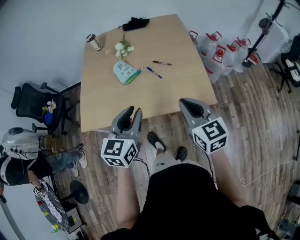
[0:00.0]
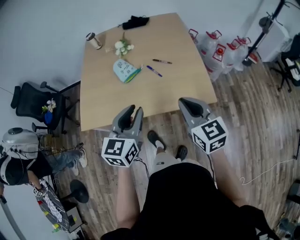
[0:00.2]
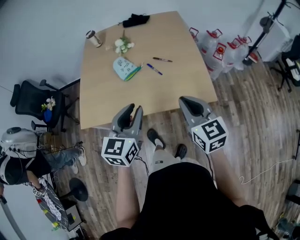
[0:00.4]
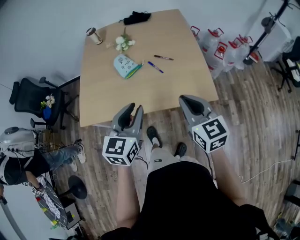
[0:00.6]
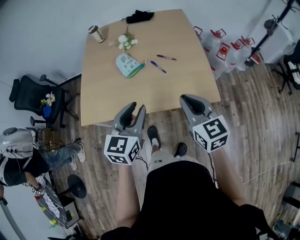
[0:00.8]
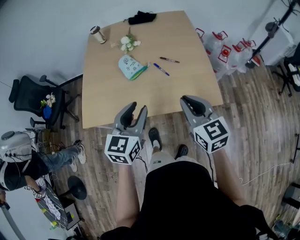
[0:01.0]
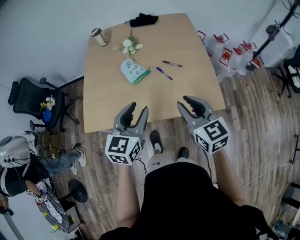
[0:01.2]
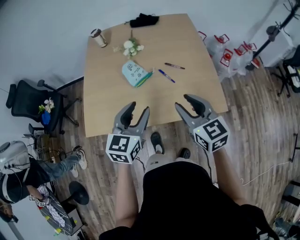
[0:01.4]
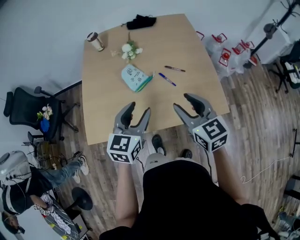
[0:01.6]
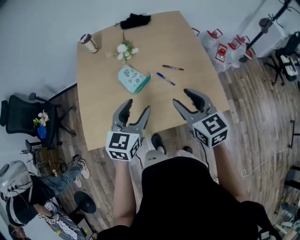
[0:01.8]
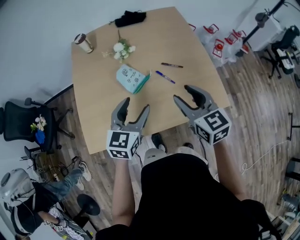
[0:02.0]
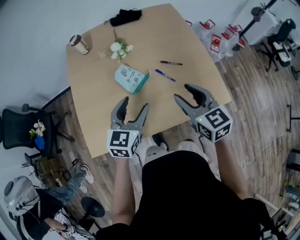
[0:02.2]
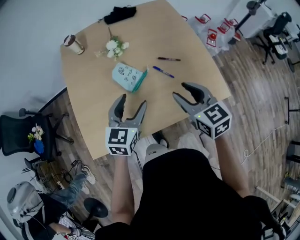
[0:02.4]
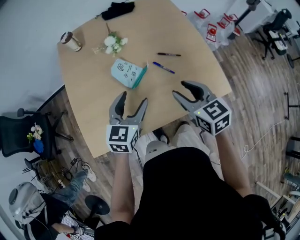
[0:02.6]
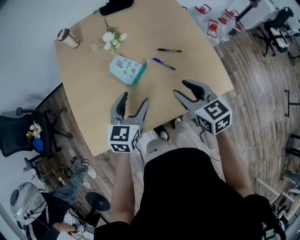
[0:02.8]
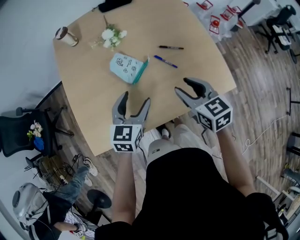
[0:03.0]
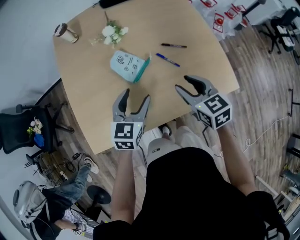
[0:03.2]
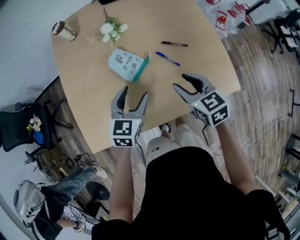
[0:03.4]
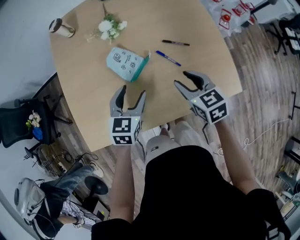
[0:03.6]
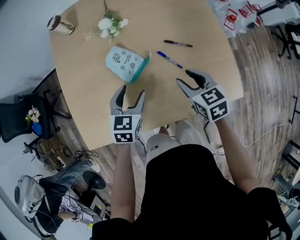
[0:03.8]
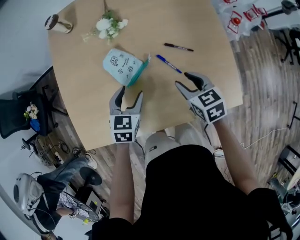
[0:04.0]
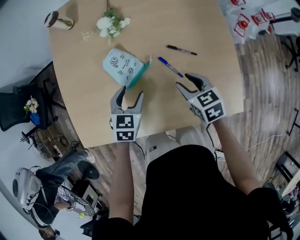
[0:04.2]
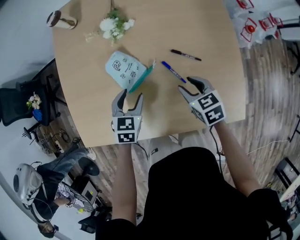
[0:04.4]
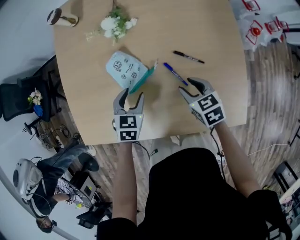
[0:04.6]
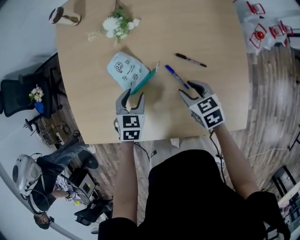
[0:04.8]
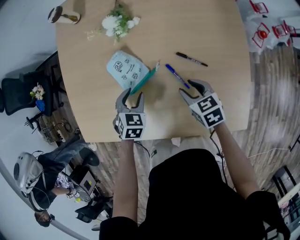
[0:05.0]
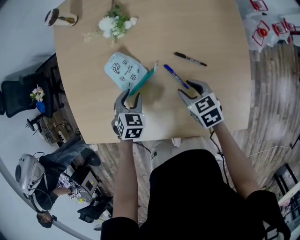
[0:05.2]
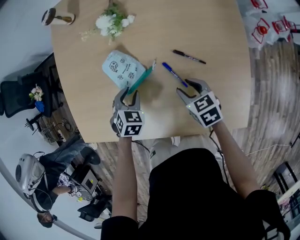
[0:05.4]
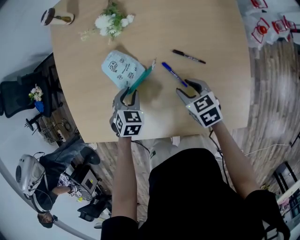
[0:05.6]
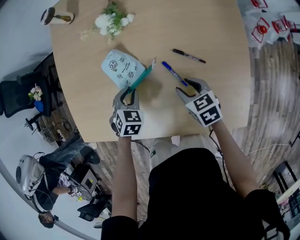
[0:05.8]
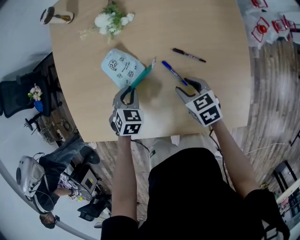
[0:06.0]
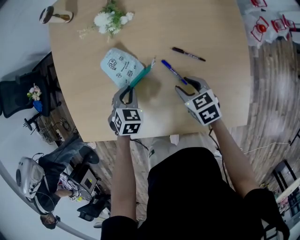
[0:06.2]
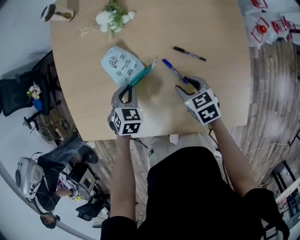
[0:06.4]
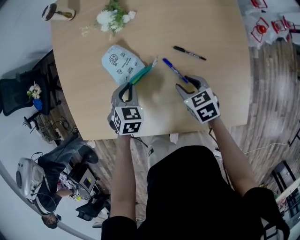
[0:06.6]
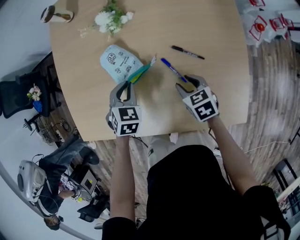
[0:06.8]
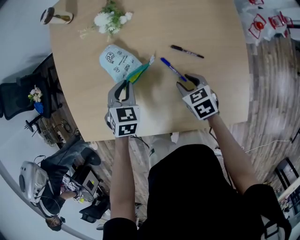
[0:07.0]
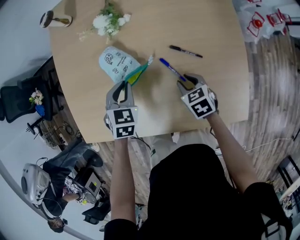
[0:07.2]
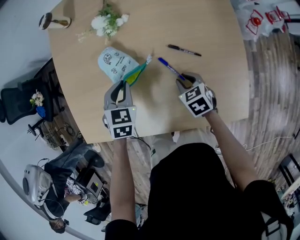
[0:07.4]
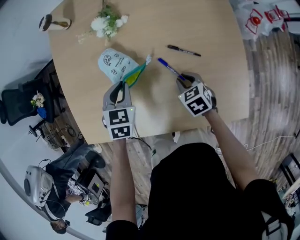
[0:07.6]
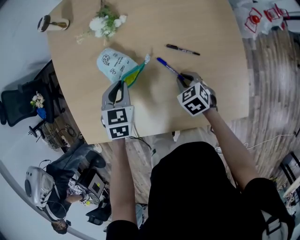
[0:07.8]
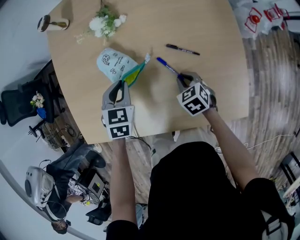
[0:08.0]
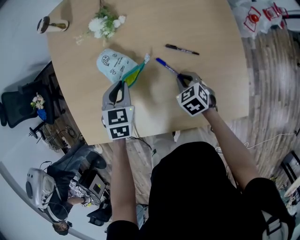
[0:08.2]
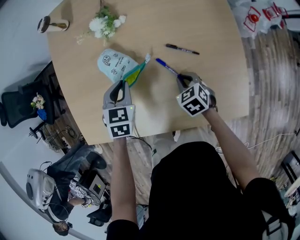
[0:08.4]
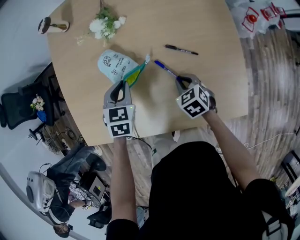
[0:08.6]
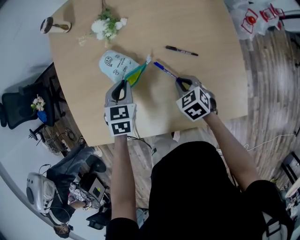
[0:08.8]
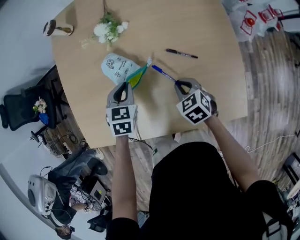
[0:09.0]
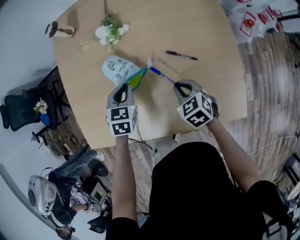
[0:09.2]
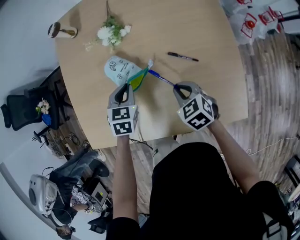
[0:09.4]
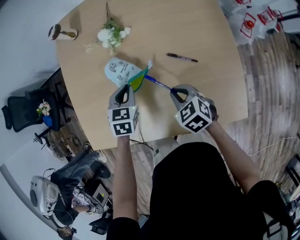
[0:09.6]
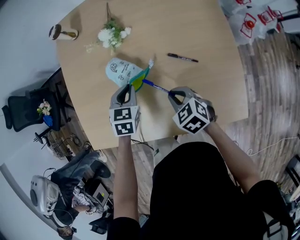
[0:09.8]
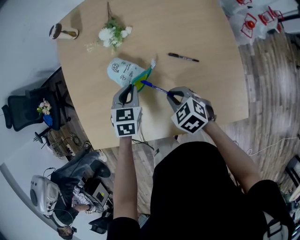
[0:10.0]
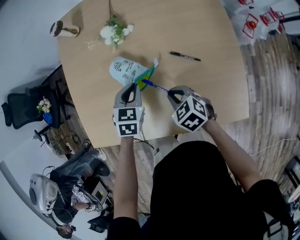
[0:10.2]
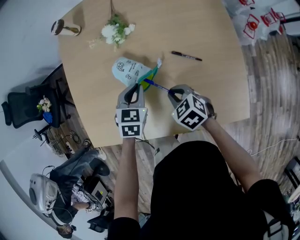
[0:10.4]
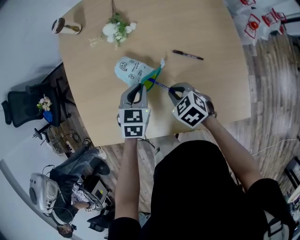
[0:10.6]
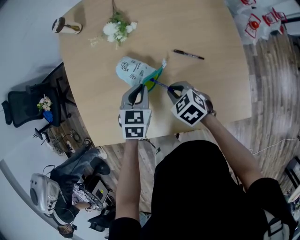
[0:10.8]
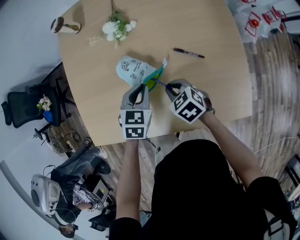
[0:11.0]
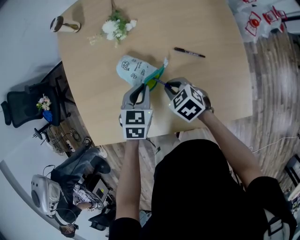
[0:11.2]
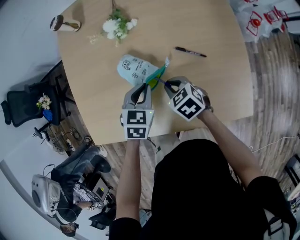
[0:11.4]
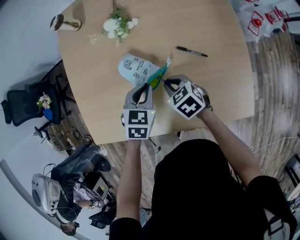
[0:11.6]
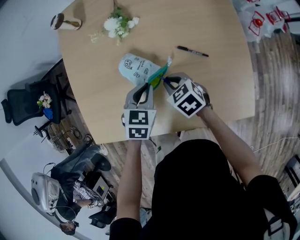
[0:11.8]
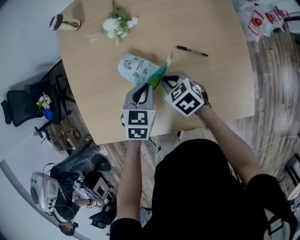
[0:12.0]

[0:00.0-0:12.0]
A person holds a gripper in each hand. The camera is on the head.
0:00.0 to 0:01.6: The two grippers go some 15 cm forward and to the left. The left gripper opens; the right gripper opens.
0:01.6 to 0:03.0: The left gripper is displaced downward, forward and to the left by roughly 15 cm. Meanwhile the right gripper shifts about 10 cm downward and forward.
0:03.0 to 0:04.4: Both grippers travel together downward and forward, about 20 cm. The right gripper turns by approximately 20 degrees, while the left gripper changes its angle by some 30 degrees.
0:04.4 to 0:06.0: The left gripper shifts roughly 5 cm downward, and closes its fingers.
0:06.0 to 0:07.6: The left gripper heads upward, covering roughly 10 cm, while the right gripper closes up.
0:07.6 to 0:09.0: The right gripper moves roughly 5 cm.
0:09.0 to 0:10.4: The right gripper heads to the left, covering some 5 cm.
0:10.4 to 0:12.0: The right gripper shifts some 5 cm forward.

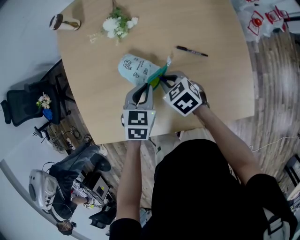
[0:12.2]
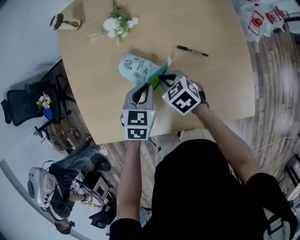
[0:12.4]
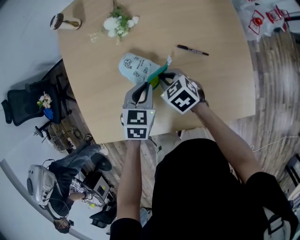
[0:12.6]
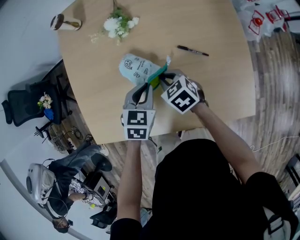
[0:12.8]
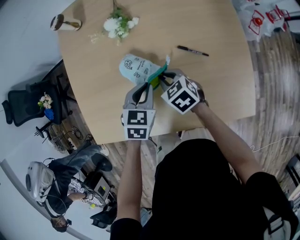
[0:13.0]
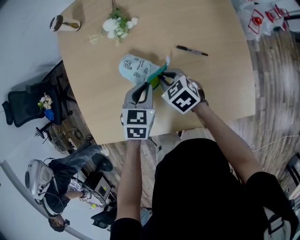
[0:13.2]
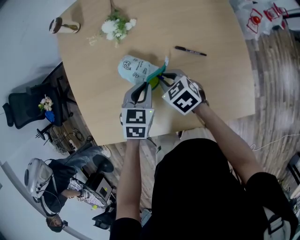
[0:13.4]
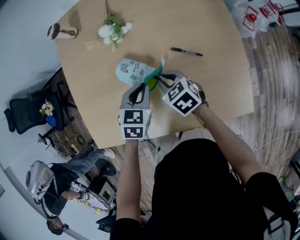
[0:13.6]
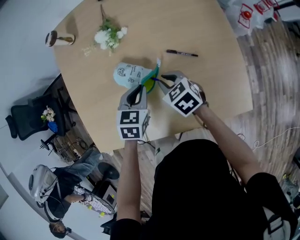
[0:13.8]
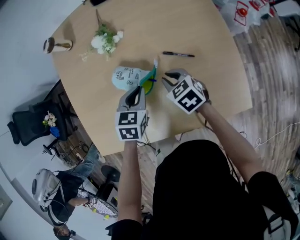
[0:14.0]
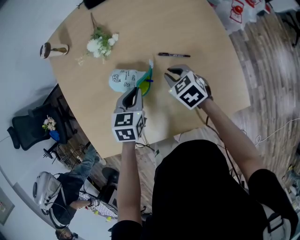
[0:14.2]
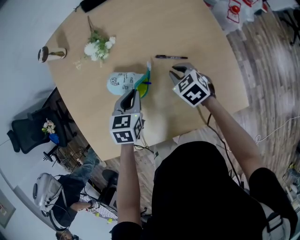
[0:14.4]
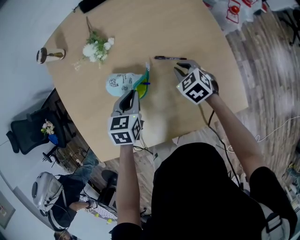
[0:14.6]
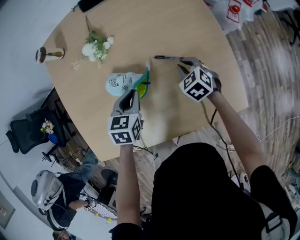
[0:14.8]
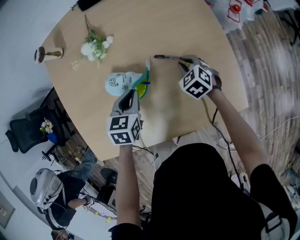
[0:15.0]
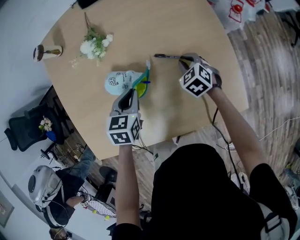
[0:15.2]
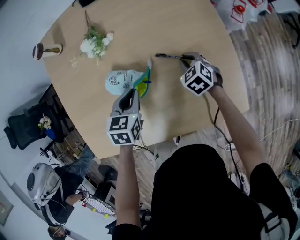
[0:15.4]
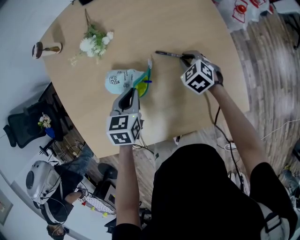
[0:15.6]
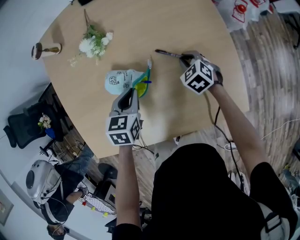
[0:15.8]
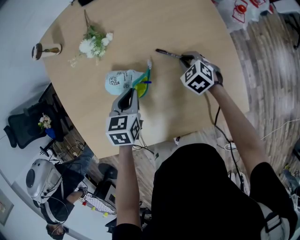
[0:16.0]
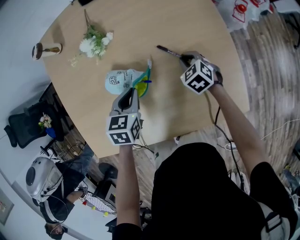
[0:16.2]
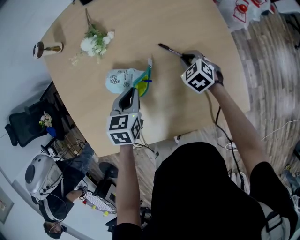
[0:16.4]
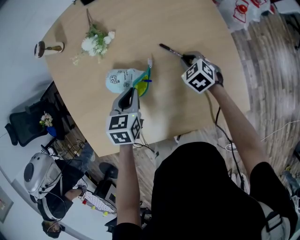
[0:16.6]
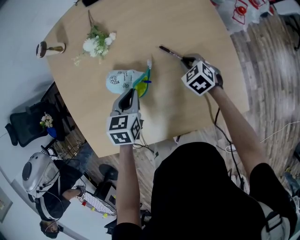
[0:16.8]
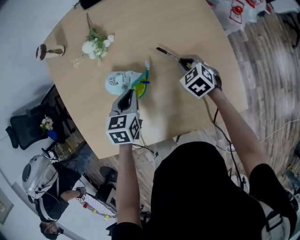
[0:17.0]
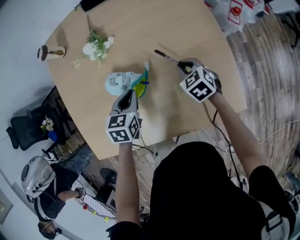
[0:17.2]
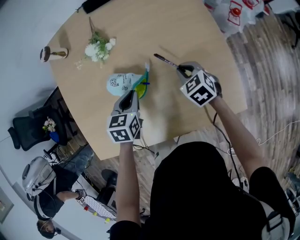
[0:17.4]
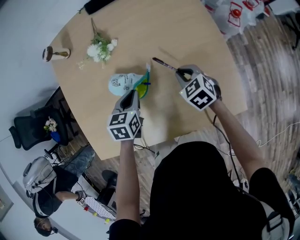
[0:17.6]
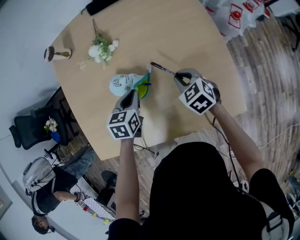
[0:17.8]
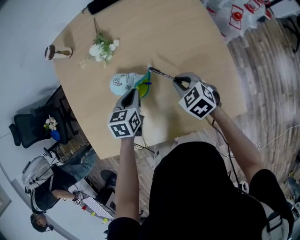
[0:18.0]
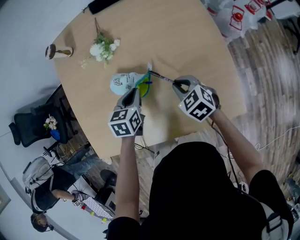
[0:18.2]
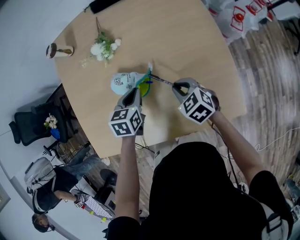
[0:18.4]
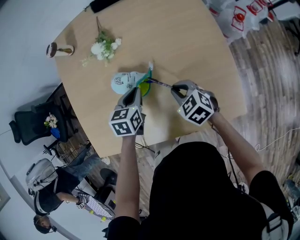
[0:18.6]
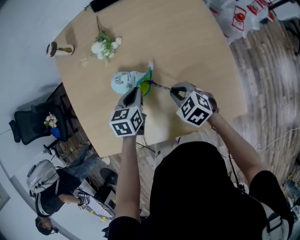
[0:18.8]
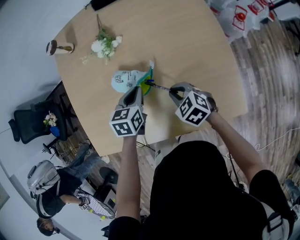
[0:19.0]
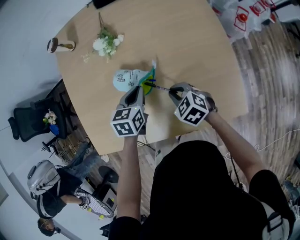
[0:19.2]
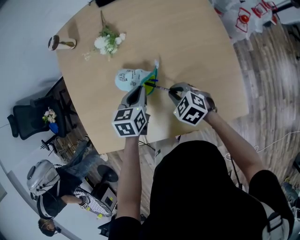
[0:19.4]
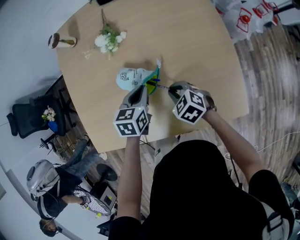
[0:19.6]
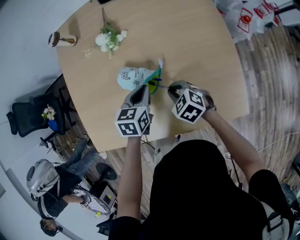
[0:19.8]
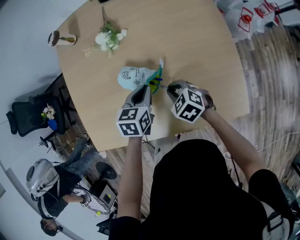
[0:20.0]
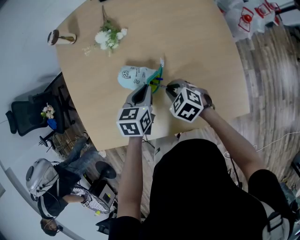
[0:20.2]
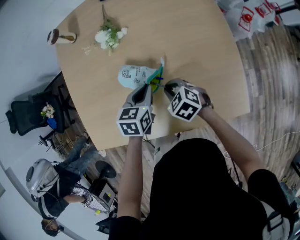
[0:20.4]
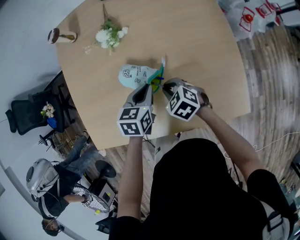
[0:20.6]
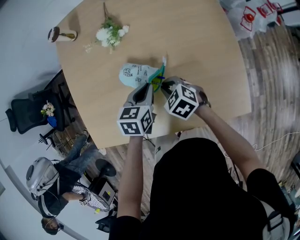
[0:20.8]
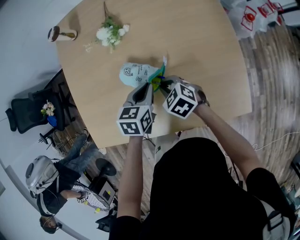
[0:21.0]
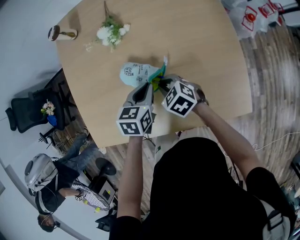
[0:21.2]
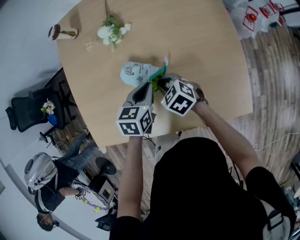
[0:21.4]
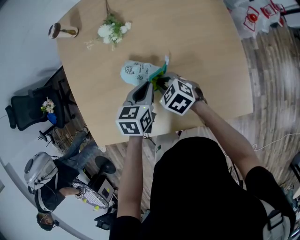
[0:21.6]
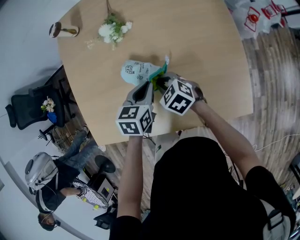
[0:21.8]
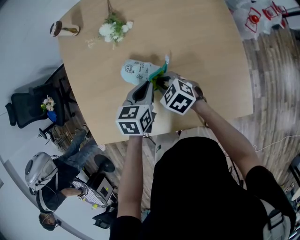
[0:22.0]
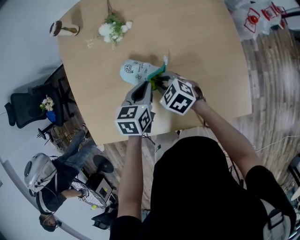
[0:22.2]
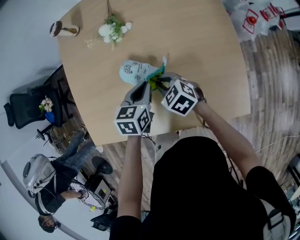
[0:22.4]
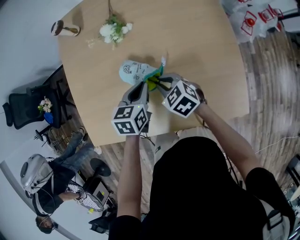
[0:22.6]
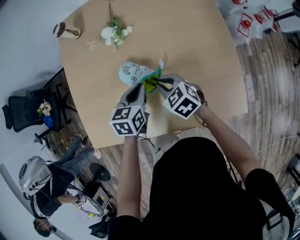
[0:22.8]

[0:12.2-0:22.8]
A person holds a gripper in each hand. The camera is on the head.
0:12.2 to 0:13.8: The grippers stay close to where they were, moving slightly.
0:13.8 to 0:15.2: The right gripper travels to the right and downward by some 15 cm, and turns by about 20 degrees.
0:15.2 to 0:16.8: The grippers make only small movements.
0:16.8 to 0:18.2: The right gripper is displaced upward, backward and to the left by approximately 10 cm.
0:18.2 to 0:19.8: The right gripper moves to the left, some 5 cm.
0:19.8 to 0:21.2: The right gripper ends up about 5 cm from where it was.
0:21.2 to 0:22.8: The grippers stay close to where they were, moving slightly.

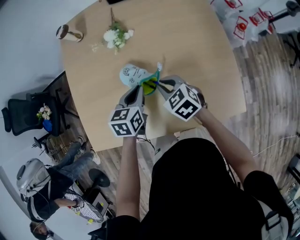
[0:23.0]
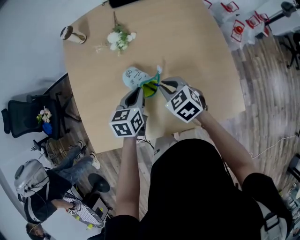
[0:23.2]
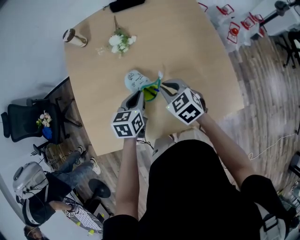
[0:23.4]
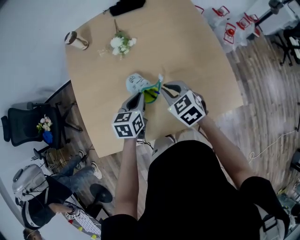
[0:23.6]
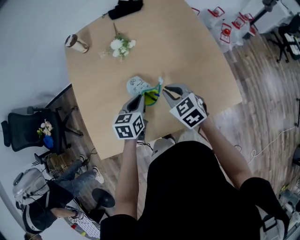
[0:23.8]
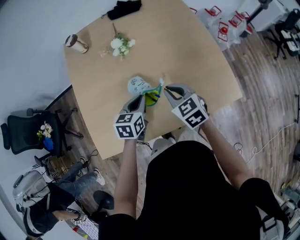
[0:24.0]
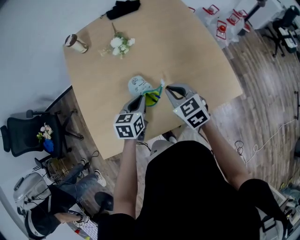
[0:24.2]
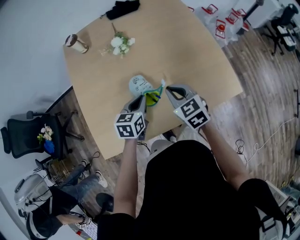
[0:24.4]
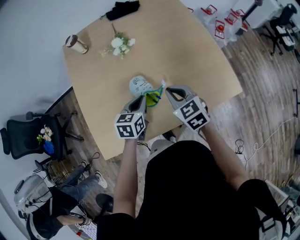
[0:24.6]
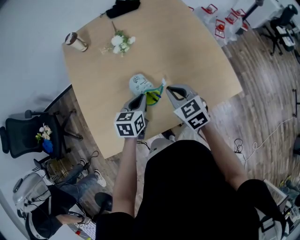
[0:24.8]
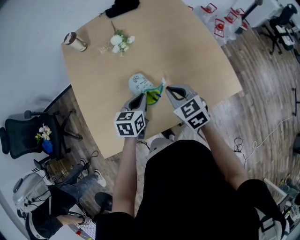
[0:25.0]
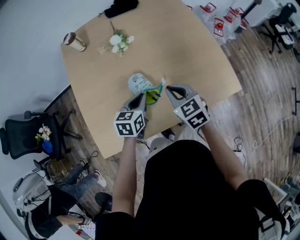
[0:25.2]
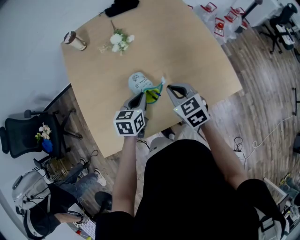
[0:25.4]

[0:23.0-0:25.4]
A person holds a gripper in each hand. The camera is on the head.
0:23.0 to 0:24.2: The left gripper goes roughly 10 cm backward and to the left; the right gripper shifts about 10 cm backward and upward, and rotates roughly 20 degrees.
0:24.2 to 0:25.4: The grippers make only small movements.
